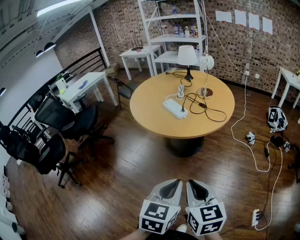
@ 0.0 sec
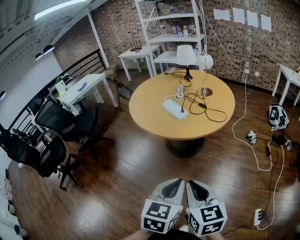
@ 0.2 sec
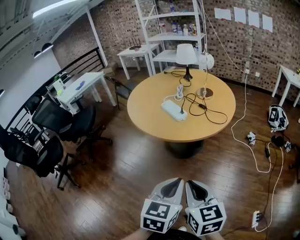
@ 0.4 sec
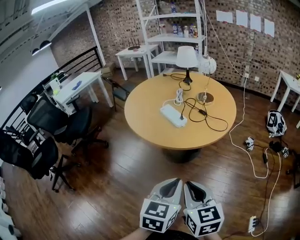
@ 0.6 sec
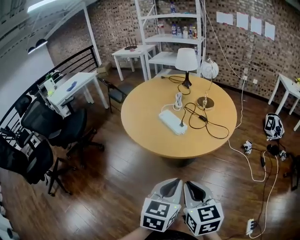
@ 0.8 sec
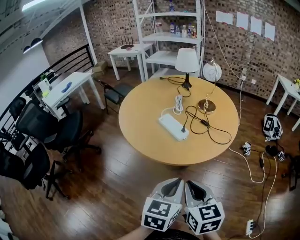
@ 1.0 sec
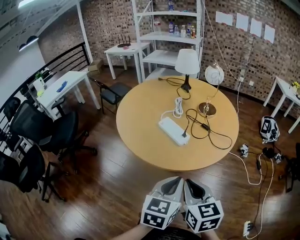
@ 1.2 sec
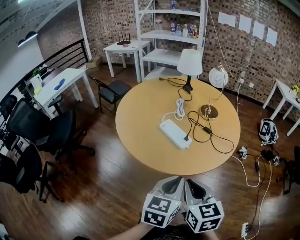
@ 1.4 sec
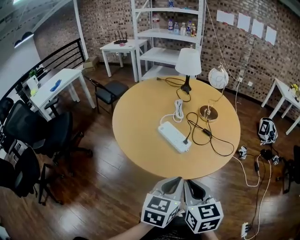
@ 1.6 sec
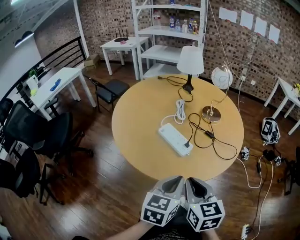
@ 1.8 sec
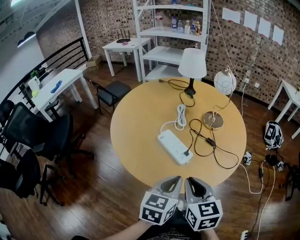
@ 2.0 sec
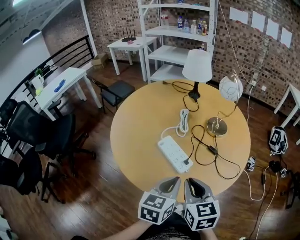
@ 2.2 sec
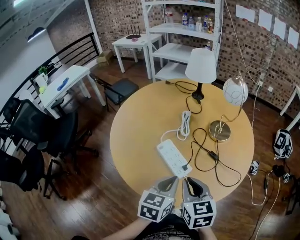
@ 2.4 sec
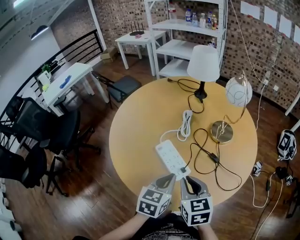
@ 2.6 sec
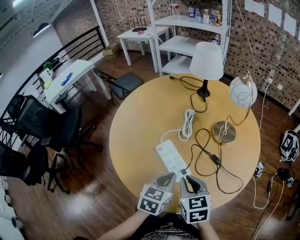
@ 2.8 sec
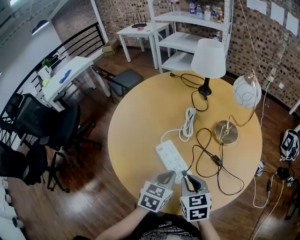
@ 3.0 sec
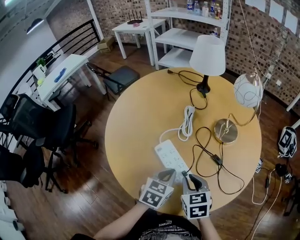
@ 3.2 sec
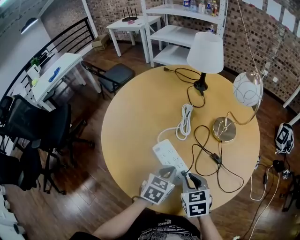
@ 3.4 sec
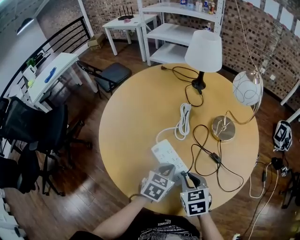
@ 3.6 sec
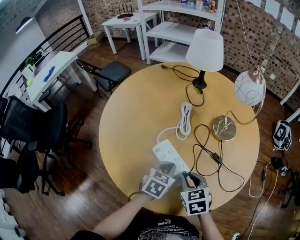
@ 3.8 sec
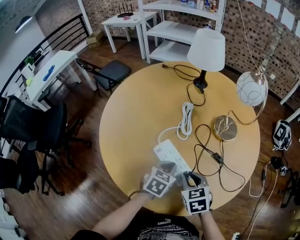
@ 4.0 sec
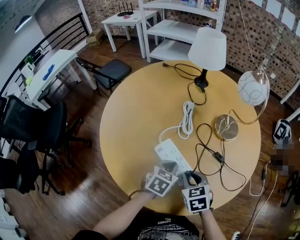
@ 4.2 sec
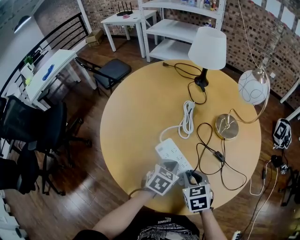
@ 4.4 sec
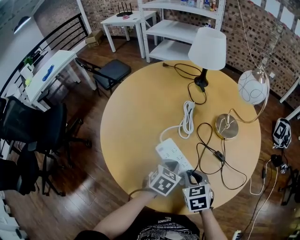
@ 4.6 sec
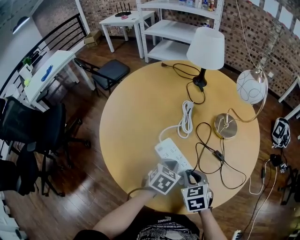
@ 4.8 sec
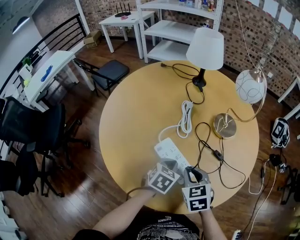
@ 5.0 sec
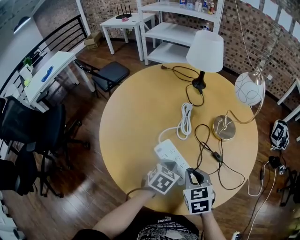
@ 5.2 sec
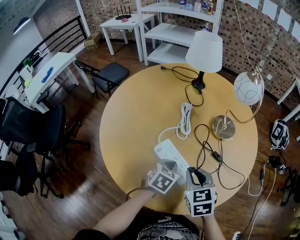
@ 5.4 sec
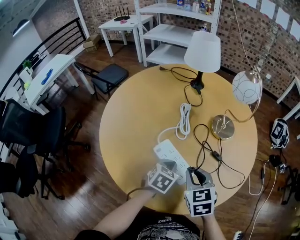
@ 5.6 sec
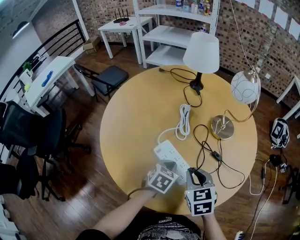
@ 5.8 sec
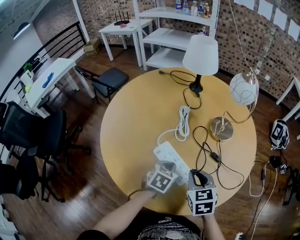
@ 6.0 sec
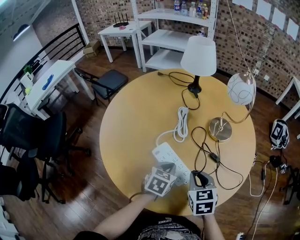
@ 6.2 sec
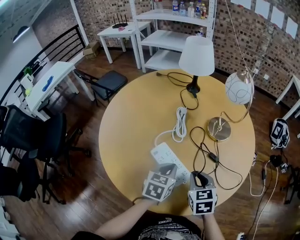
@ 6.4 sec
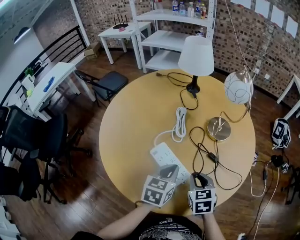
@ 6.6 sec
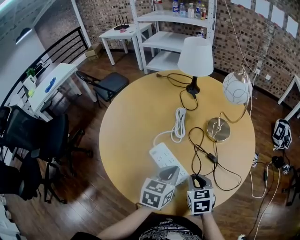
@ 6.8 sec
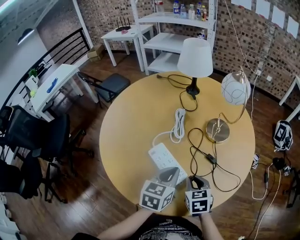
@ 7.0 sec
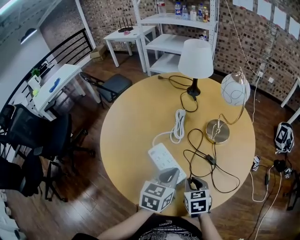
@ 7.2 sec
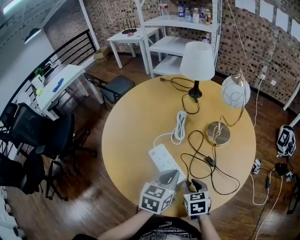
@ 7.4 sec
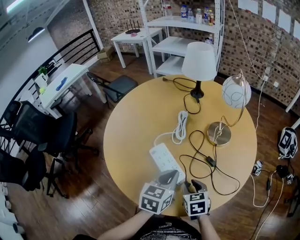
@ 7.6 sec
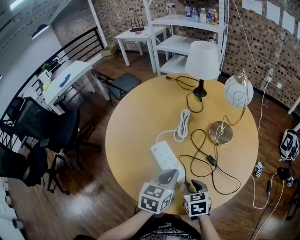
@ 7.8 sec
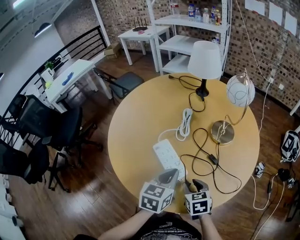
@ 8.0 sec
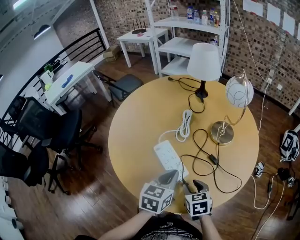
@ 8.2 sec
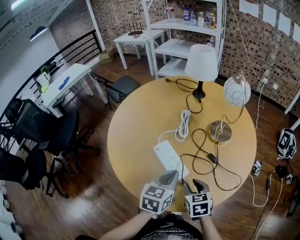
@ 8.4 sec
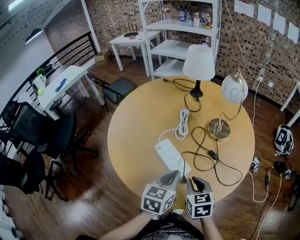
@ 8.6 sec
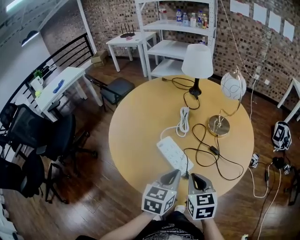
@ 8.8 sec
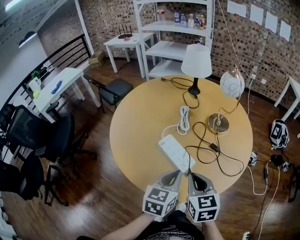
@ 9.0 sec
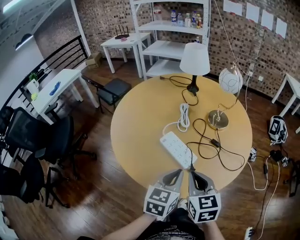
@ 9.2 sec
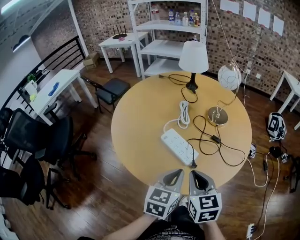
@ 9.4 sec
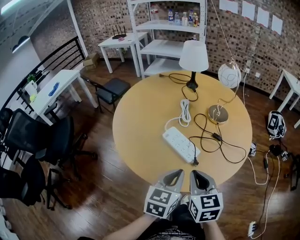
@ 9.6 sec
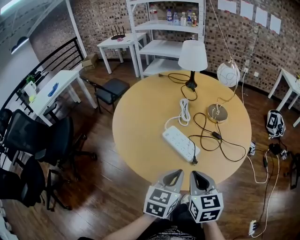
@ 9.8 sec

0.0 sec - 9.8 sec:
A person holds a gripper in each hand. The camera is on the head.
0.0 sec - 1.4 sec: The two grippers go about 30 cm forward.
1.4 sec - 2.8 sec: The left gripper travels forward and downward by approximately 25 cm, while the right gripper travels forward by some 25 cm.
2.8 sec - 4.2 sec: The left gripper moves downward and forward, about 10 cm. The right gripper shifts roughly 10 cm downward.
4.2 sec - 5.6 sec: The right gripper travels upward by some 5 cm.
5.6 sec - 7.0 sec: The left gripper heads upward, covering some 10 cm, and swivels approximately 20 degrees. Meanwhile the right gripper heads downward and to the right, covering roughly 10 cm.
7.0 sec - 8.4 sec: The grippers make only small movements.
8.4 sec - 9.8 sec: The left gripper is displaced backward by some 10 cm; the right gripper travels upward, backward and to the left by about 20 cm, rotates roughly 20 degrees, and closes up.

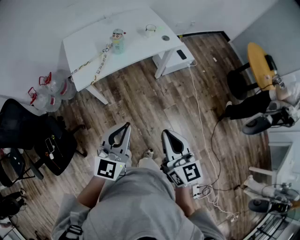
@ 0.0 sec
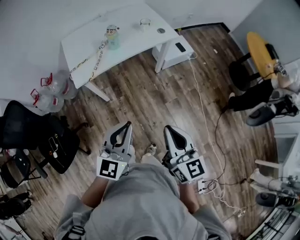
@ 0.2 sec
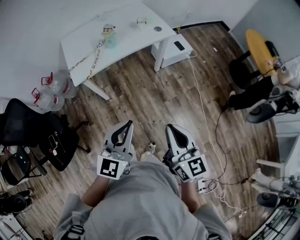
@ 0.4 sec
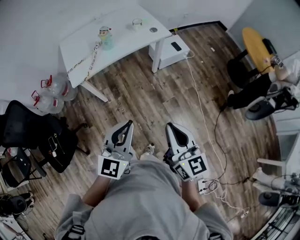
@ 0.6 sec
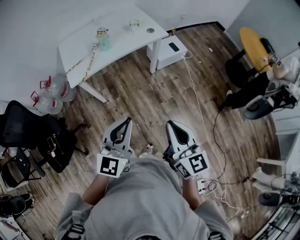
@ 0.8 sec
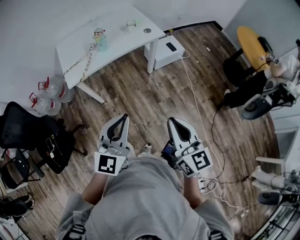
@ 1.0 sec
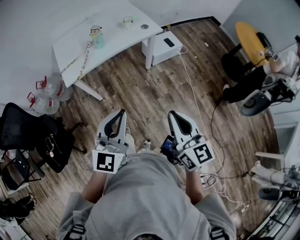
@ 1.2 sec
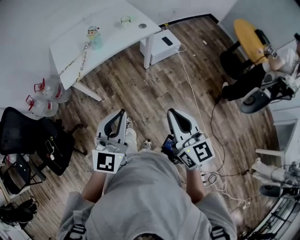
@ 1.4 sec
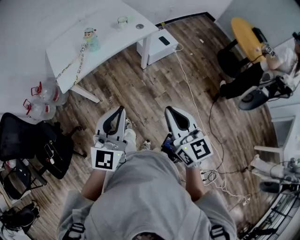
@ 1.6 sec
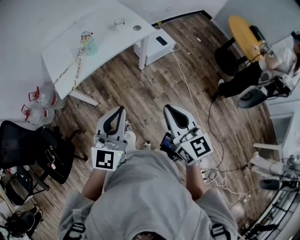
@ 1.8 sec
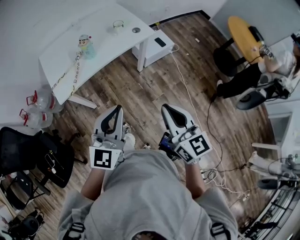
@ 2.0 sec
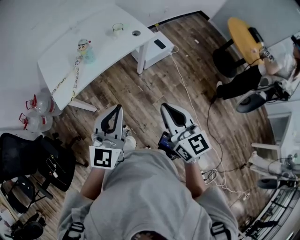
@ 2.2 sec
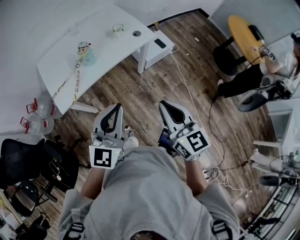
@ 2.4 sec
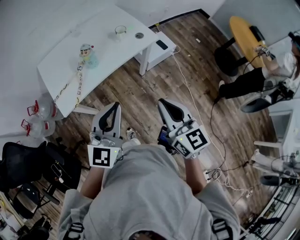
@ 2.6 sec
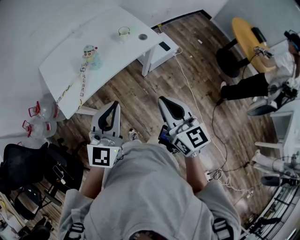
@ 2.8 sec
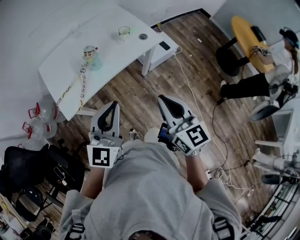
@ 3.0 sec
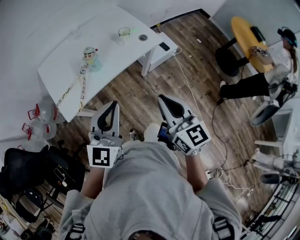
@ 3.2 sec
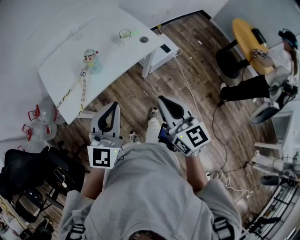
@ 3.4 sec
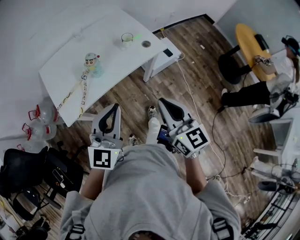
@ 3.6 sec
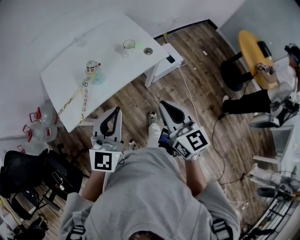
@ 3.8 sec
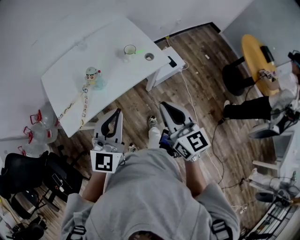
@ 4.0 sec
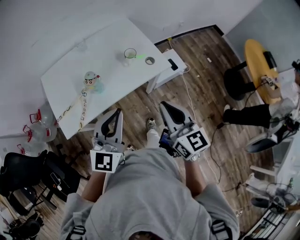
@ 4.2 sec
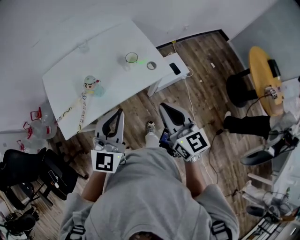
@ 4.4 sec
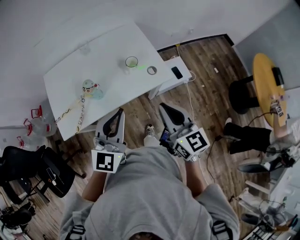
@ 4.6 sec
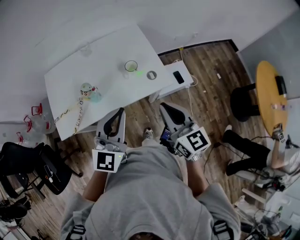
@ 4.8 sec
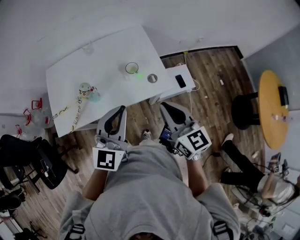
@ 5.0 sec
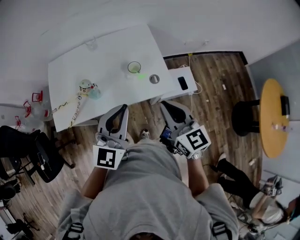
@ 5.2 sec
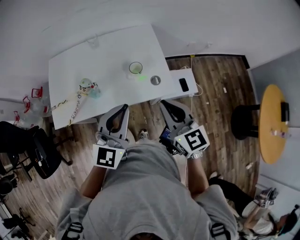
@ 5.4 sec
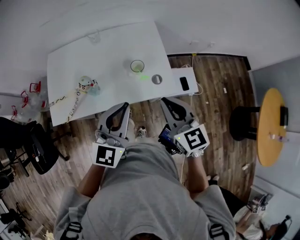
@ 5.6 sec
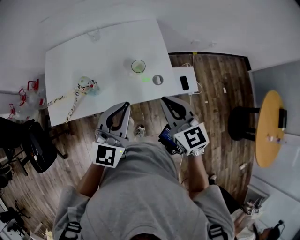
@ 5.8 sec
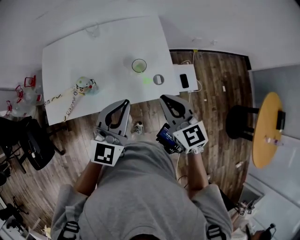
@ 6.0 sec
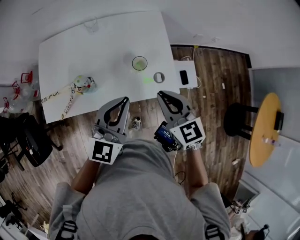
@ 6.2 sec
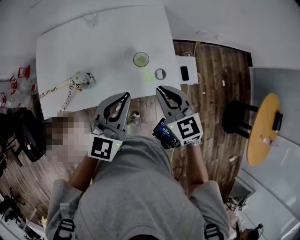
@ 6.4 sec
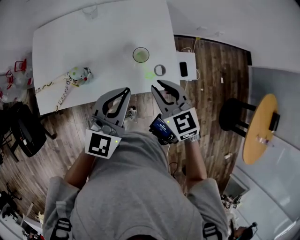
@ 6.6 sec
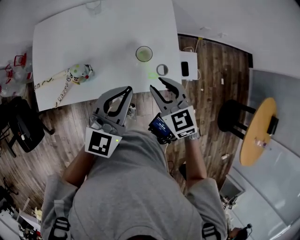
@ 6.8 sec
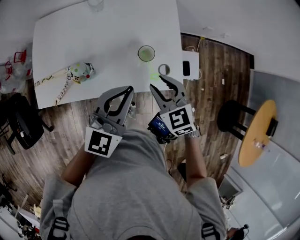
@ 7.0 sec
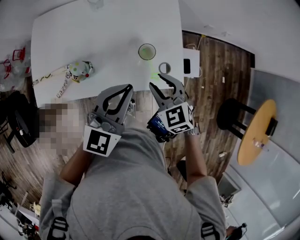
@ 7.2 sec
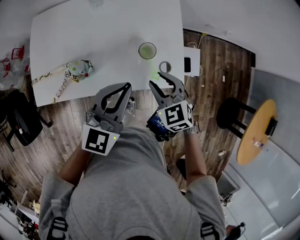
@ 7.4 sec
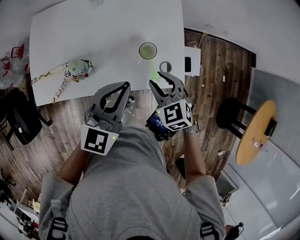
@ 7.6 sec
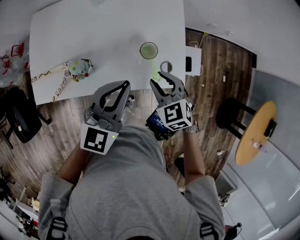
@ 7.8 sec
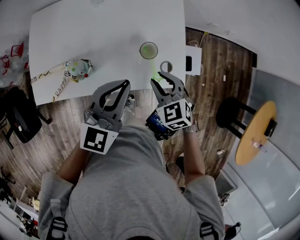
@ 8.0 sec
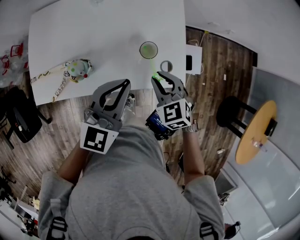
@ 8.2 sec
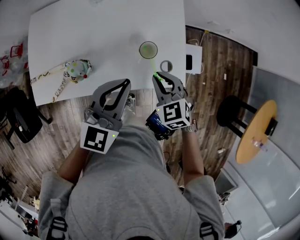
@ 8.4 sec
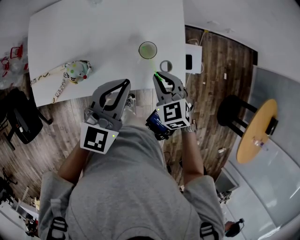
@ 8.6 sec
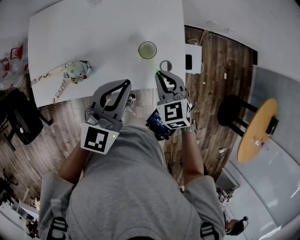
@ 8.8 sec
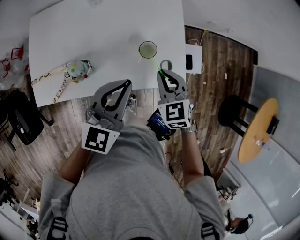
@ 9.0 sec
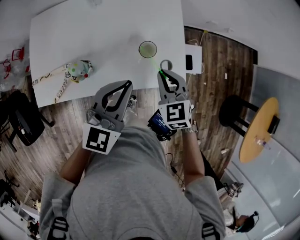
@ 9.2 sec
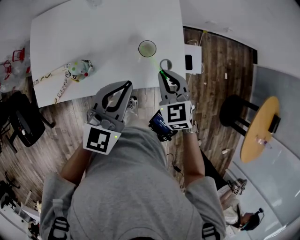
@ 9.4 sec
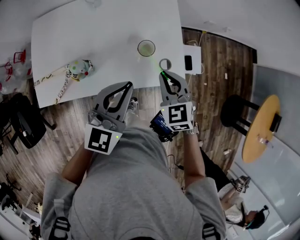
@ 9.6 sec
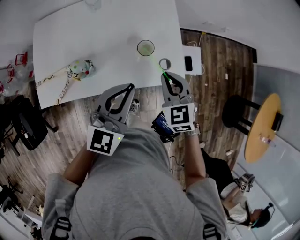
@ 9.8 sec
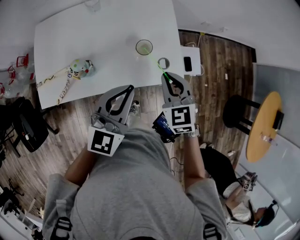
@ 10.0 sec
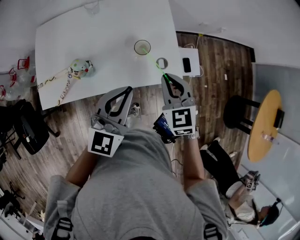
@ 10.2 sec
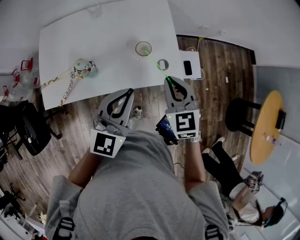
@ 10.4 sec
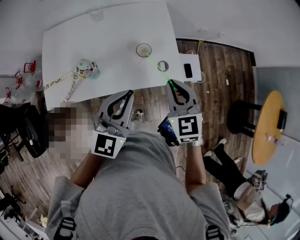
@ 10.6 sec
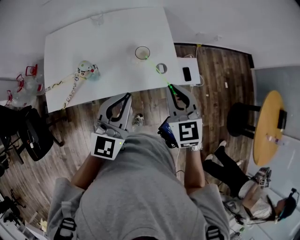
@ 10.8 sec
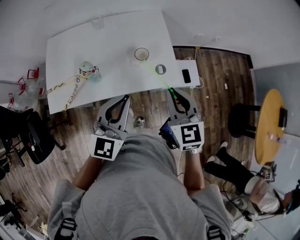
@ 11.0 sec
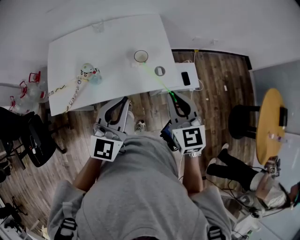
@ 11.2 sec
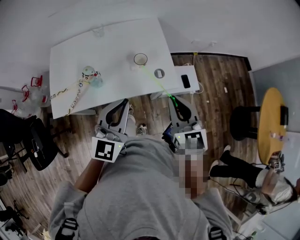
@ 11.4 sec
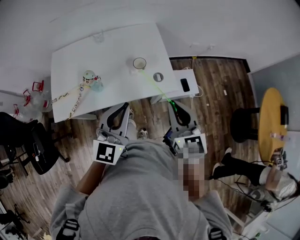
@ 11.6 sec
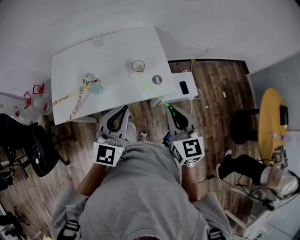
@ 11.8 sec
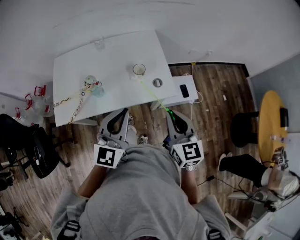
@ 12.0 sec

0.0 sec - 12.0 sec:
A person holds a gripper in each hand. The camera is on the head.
0.0 sec - 1.6 sec: Both grippers move to the right, approximately 10 cm.
1.6 sec - 3.0 sec: The two grippers go approximately 20 cm forward and to the left.
3.0 sec - 4.4 sec: The two grippers go about 20 cm forward.
4.4 sec - 6.0 sec: The right gripper travels forward by some 20 cm, and rotates roughly 30 degrees. Meanwhile the left gripper shifts about 15 cm forward and to the right.
6.0 sec - 7.6 sec: The left gripper travels forward by some 5 cm. Meanwhile the right gripper moves downward and forward, approximately 15 cm, changes its angle by some 30 degrees, and opens its fingers.
7.6 sec - 9.0 sec: The right gripper closes up.
9.0 sec - 10.4 sec: The right gripper heads upward and backward, covering about 10 cm; the left gripper goes roughly 10 cm backward.
10.4 sec - 12.0 sec: The left gripper goes some 10 cm backward, while the right gripper heads backward and upward, covering about 15 cm, and swivels about 20 degrees.

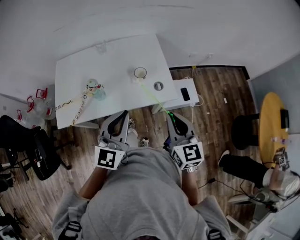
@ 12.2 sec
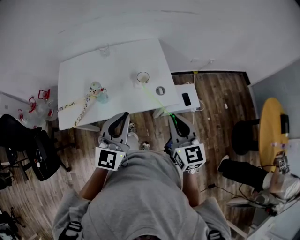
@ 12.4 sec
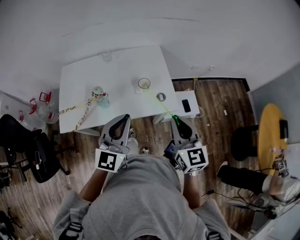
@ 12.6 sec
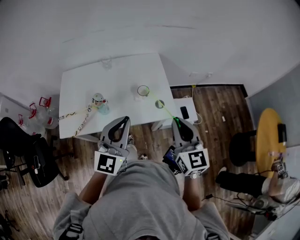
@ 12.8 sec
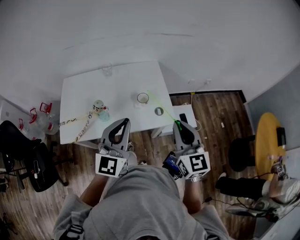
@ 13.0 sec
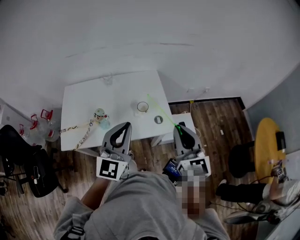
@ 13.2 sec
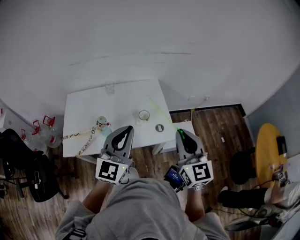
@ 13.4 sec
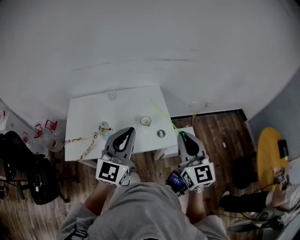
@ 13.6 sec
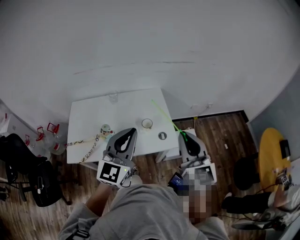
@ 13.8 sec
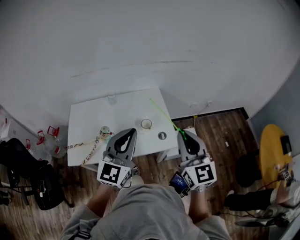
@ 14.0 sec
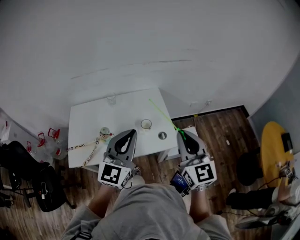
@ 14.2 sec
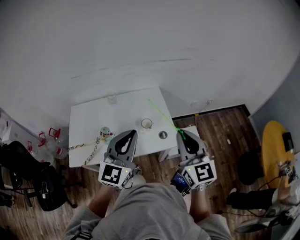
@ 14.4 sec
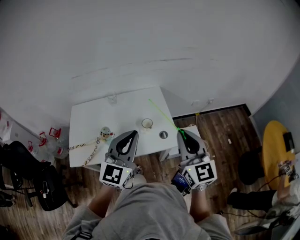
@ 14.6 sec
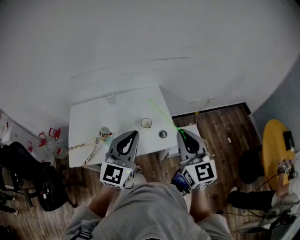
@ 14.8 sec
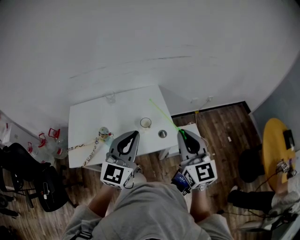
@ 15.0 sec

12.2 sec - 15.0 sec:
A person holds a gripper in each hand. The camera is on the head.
12.2 sec - 13.6 sec: The two grippers go about 10 cm upward.
13.6 sec - 15.0 sec: There are only small adjustments of the grippers.
